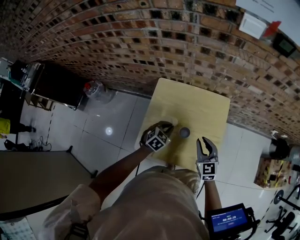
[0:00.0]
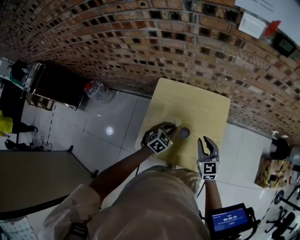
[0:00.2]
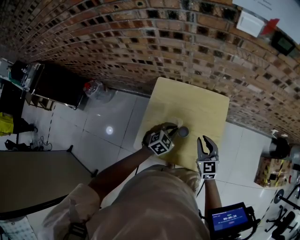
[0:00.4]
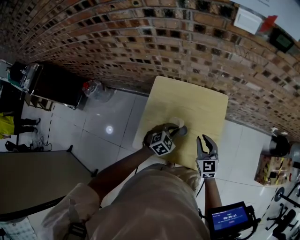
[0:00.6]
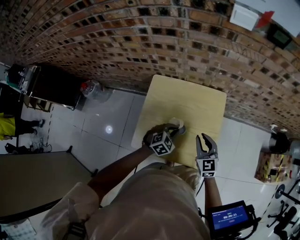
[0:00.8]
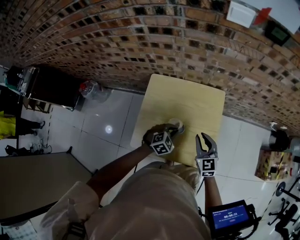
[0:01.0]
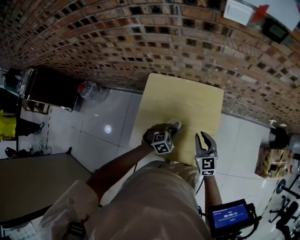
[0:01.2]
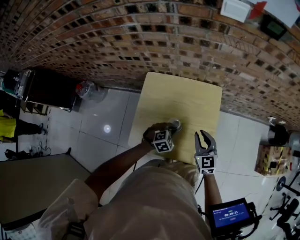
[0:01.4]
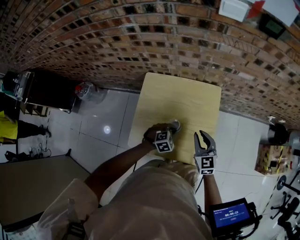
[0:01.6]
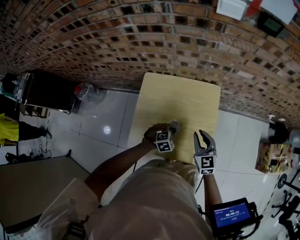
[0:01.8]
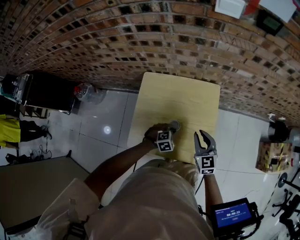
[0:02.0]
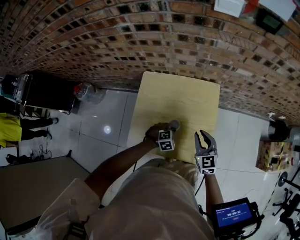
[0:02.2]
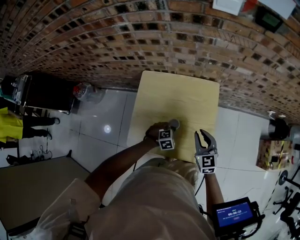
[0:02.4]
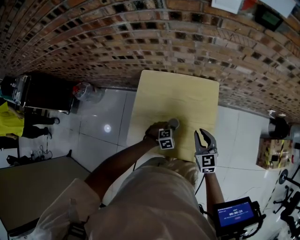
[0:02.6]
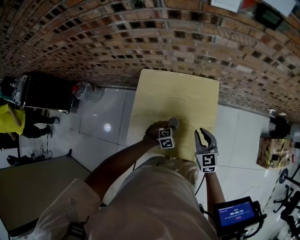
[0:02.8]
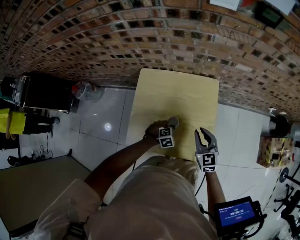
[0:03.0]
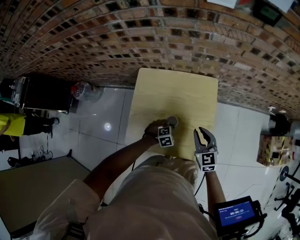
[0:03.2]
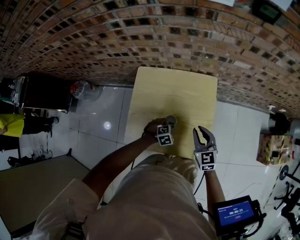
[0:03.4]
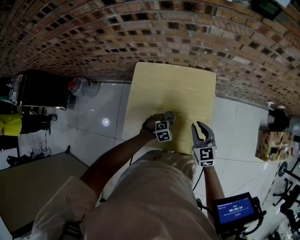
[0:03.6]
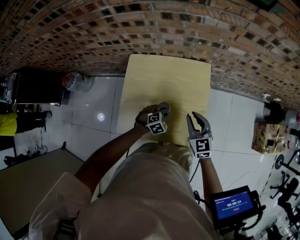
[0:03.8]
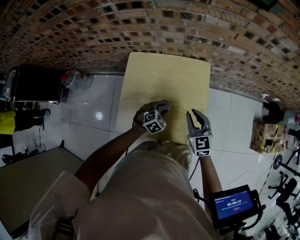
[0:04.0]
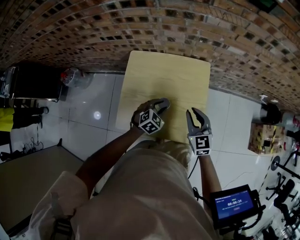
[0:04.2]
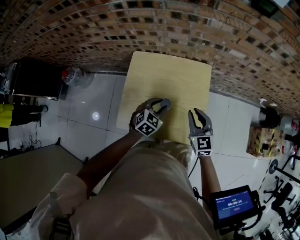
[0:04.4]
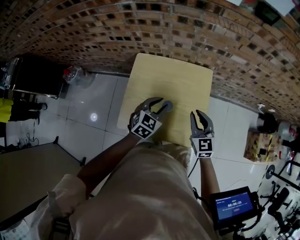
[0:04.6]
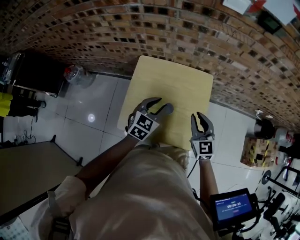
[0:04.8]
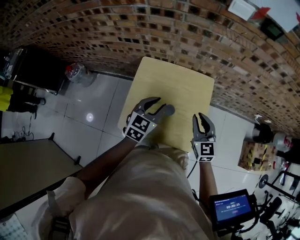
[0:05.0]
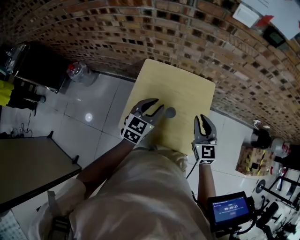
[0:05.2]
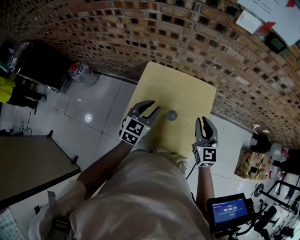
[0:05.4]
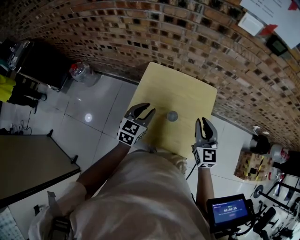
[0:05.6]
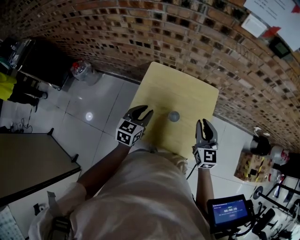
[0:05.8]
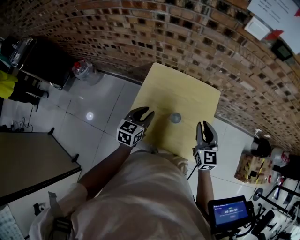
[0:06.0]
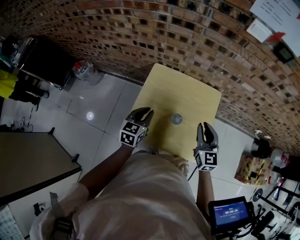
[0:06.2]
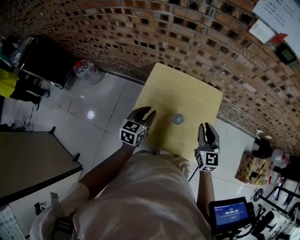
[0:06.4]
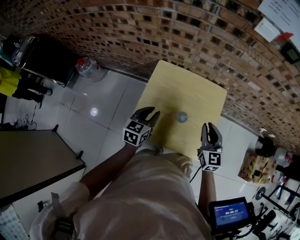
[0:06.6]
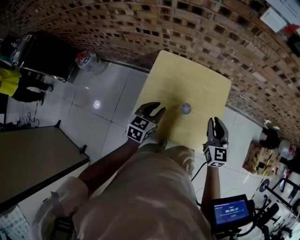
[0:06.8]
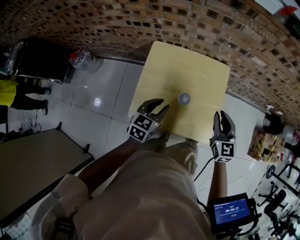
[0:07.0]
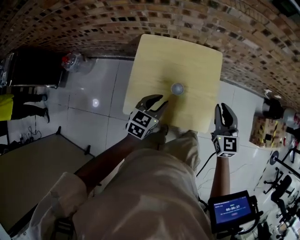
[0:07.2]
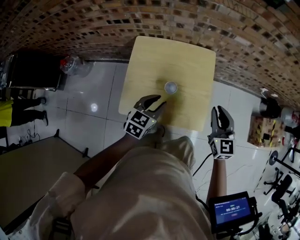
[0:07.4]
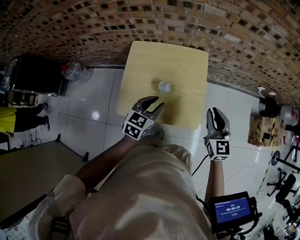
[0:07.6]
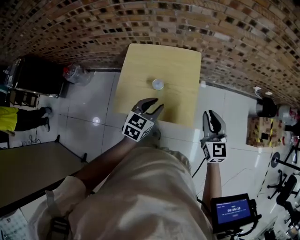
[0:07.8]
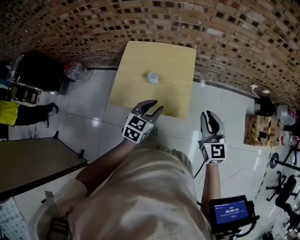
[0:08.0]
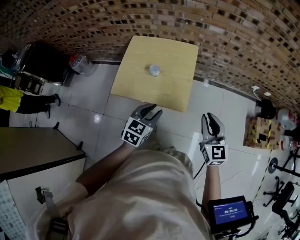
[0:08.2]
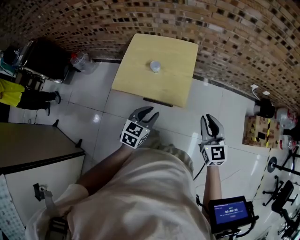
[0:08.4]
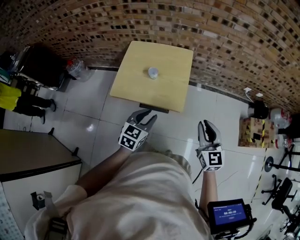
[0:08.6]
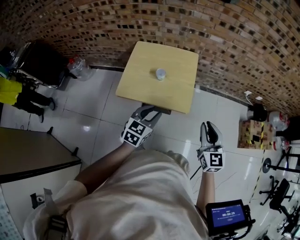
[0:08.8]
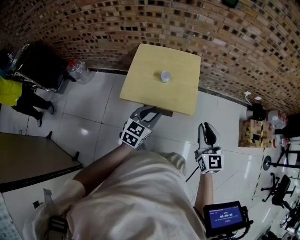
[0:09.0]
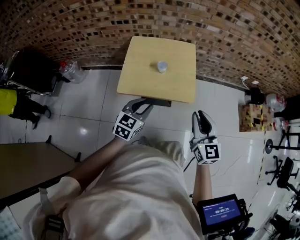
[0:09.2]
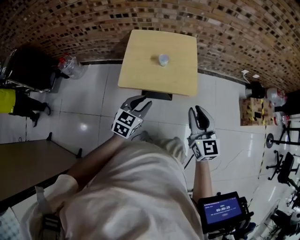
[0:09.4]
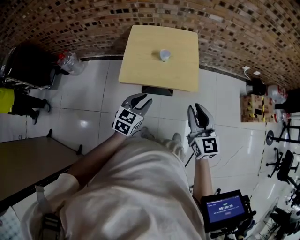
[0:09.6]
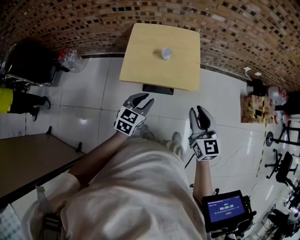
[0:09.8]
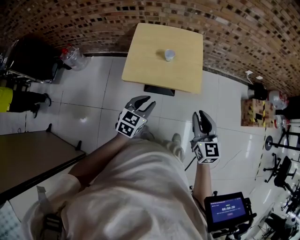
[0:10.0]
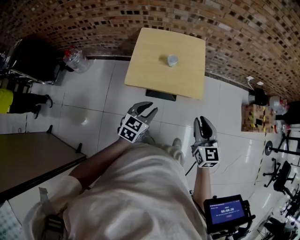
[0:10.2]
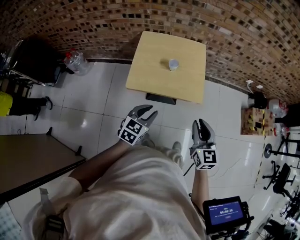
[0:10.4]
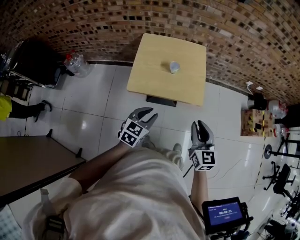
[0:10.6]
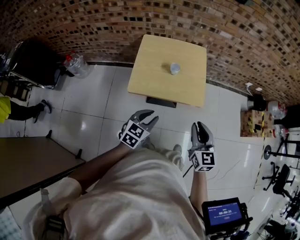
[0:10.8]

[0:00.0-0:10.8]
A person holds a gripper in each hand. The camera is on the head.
0:00.0 to 0:01.6: The left gripper heads to the right and downward, covering approximately 10 cm, and rotates about 30 degrees.
0:01.6 to 0:03.0: The left gripper goes some 5 cm downward.
0:03.0 to 0:04.6: The left gripper travels upward by roughly 20 cm, tilts its fingers some 30 degrees upward, and opens up. Meanwhile the right gripper travels upward by roughly 5 cm.
0:04.6 to 0:06.2: The right gripper shifts roughly 5 cm upward, while the left gripper shifts roughly 15 cm to the left, and rotates some 30 degrees.
0:06.2 to 0:07.8: The two grippers go approximately 25 cm to the right and backward. The left gripper changes its angle by roughly 20 degrees.
0:07.8 to 0:09.2: The right gripper goes approximately 20 cm backward, while the left gripper shifts about 20 cm backward and to the left.
0:09.2 to 0:10.8: The right gripper goes roughly 5 cm downward. Meanwhile the left gripper shifts by about 5 cm.

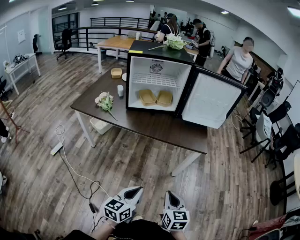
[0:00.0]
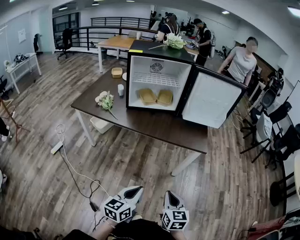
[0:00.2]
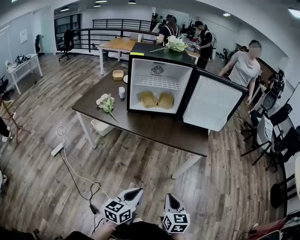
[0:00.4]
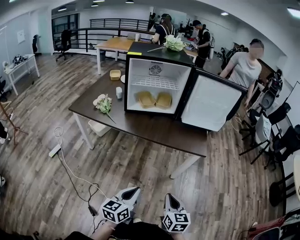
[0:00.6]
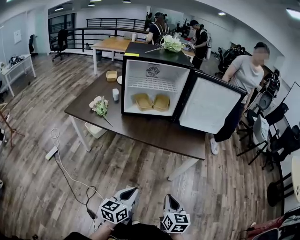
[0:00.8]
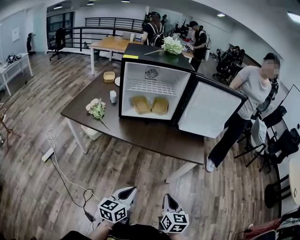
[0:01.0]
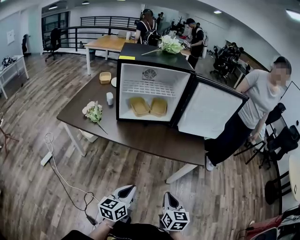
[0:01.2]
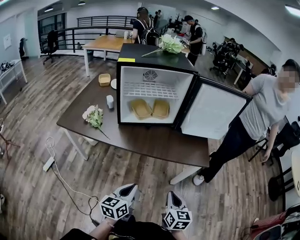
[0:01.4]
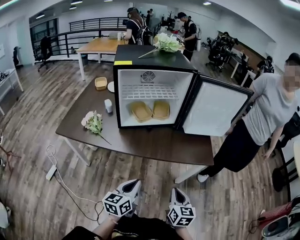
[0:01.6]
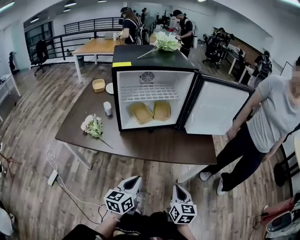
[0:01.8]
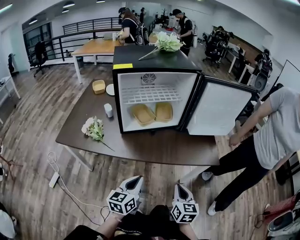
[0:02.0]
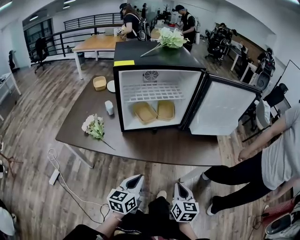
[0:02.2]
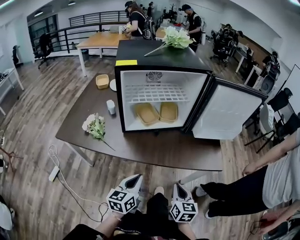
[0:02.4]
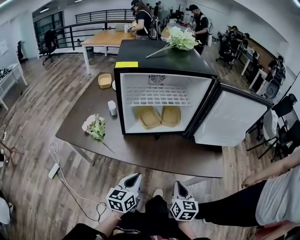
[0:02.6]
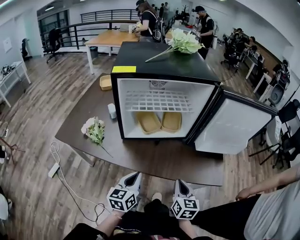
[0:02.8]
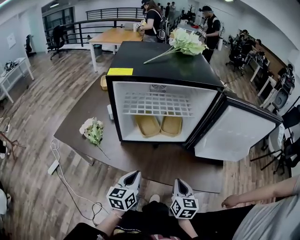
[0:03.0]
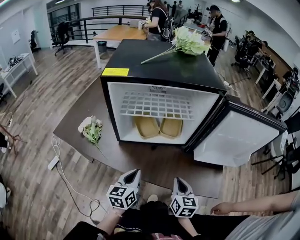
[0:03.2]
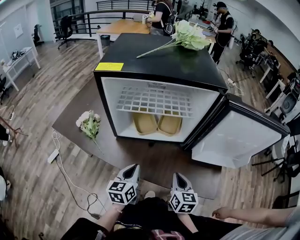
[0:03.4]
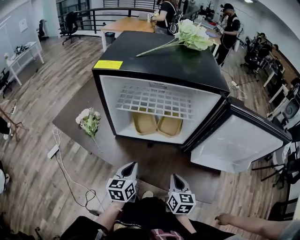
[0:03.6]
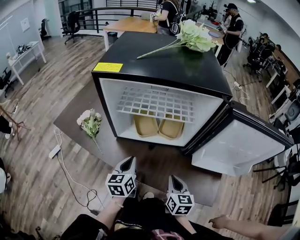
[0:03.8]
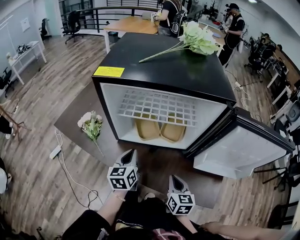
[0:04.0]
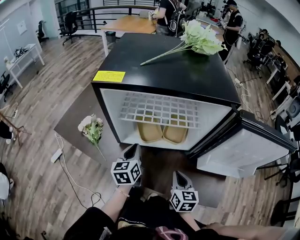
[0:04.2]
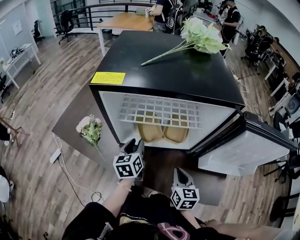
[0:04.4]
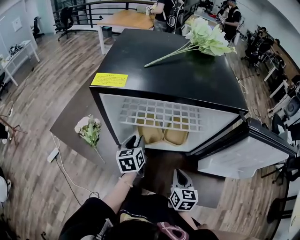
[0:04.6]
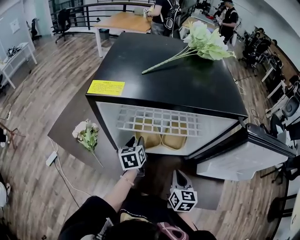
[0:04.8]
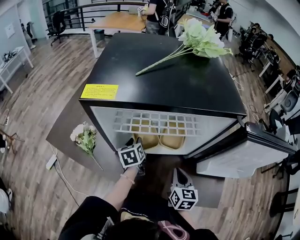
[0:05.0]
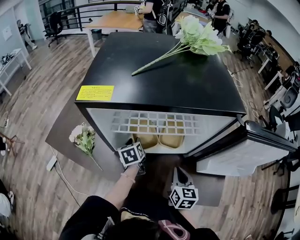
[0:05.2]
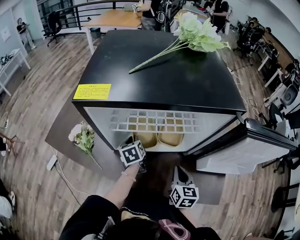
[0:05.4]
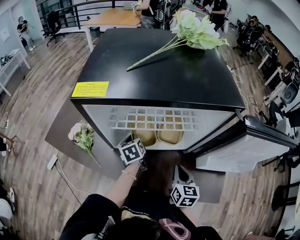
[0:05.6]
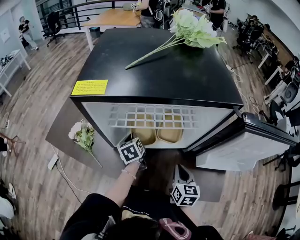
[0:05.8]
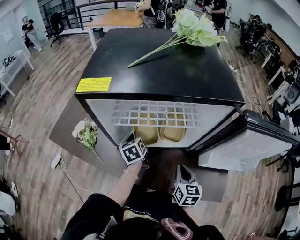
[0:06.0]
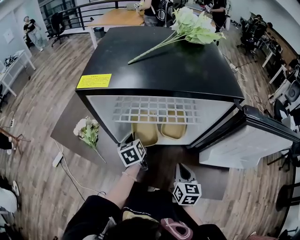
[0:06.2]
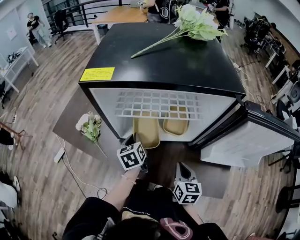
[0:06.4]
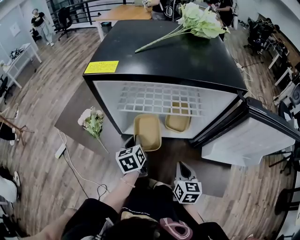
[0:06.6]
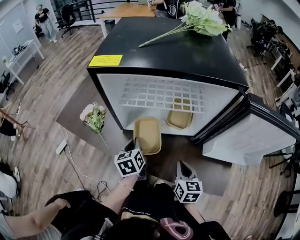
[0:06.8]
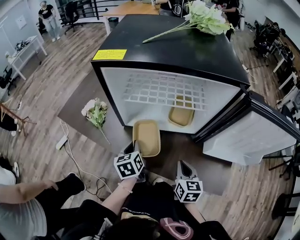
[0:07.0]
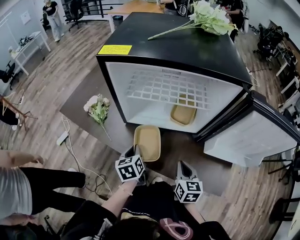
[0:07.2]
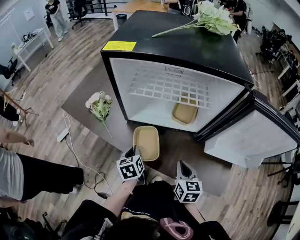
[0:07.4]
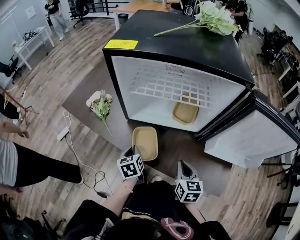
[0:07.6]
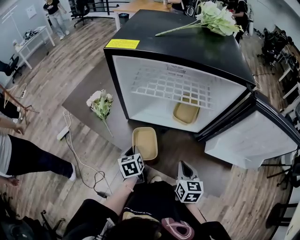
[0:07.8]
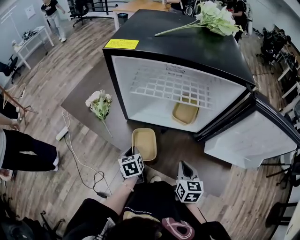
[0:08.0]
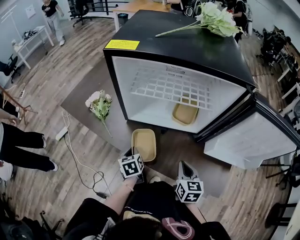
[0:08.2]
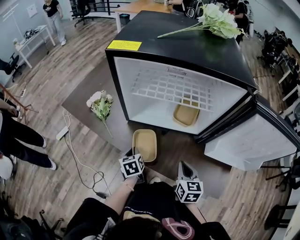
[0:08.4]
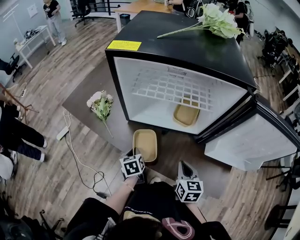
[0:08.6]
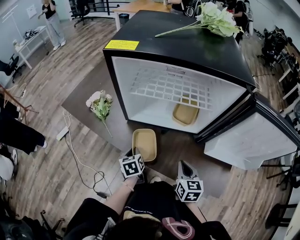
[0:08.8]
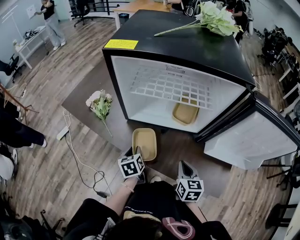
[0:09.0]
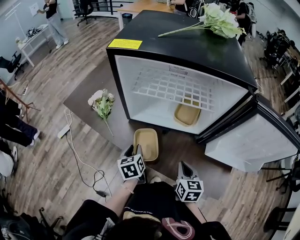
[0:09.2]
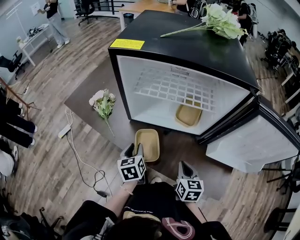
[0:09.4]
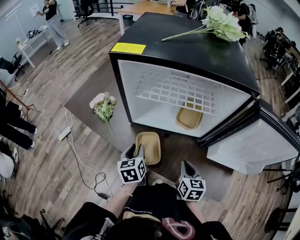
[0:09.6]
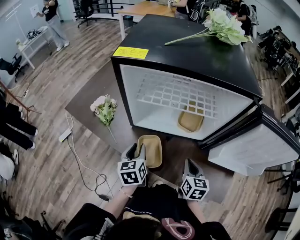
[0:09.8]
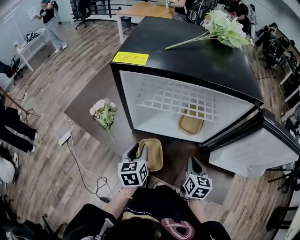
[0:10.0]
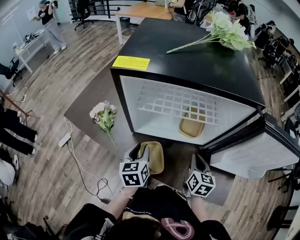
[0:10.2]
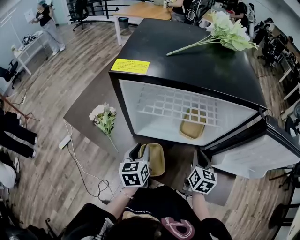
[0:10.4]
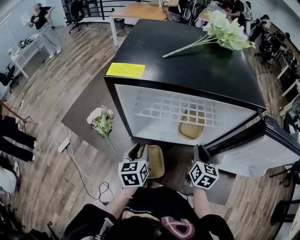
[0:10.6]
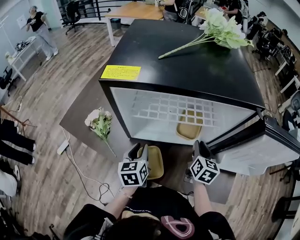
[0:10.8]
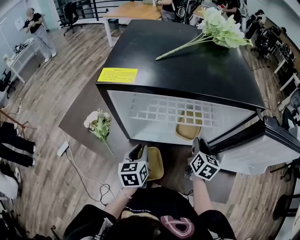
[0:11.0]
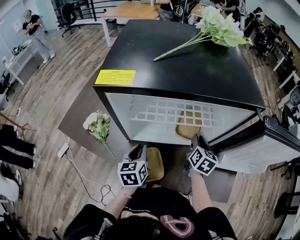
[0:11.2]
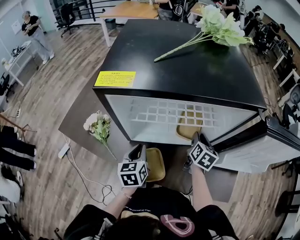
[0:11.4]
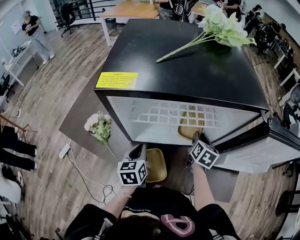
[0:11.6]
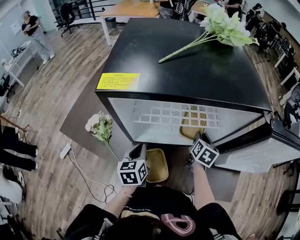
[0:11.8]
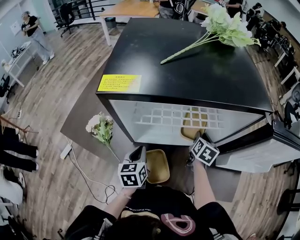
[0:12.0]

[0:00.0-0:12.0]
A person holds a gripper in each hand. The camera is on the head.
0:00.0 to 0:01.6: The left gripper moves forward and to the left, approximately 25 cm. The right gripper heads forward, covering approximately 15 cm.
0:01.6 to 0:03.0: The grippers both shift forward by roughly 20 cm.
0:03.0 to 0:04.4: The left gripper travels forward by roughly 20 cm, and opens its fingers; the right gripper moves forward, approximately 15 cm.
0:04.4 to 0:06.0: The left gripper is displaced forward and downward by approximately 10 cm, and closes its fingers.
0:06.0 to 0:07.6: The left gripper heads backward, covering about 20 cm, while the right gripper shifts about 5 cm backward.
0:07.6 to 0:09.0: There are only small adjustments of the grippers.
0:09.0 to 0:10.4: The left gripper moves upward and forward, some 15 cm; the right gripper travels forward and upward by some 10 cm.
0:10.4 to 0:12.0: The left gripper closes; the right gripper shifts some 10 cm forward, and changes its angle by approximately 20 degrees.

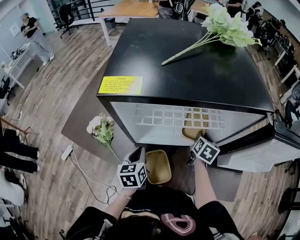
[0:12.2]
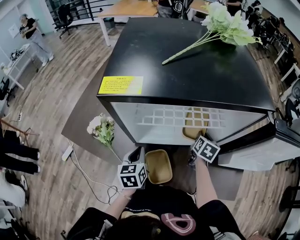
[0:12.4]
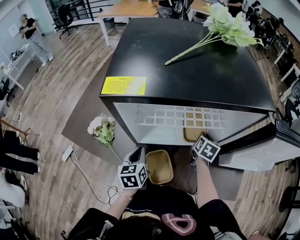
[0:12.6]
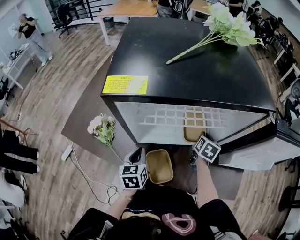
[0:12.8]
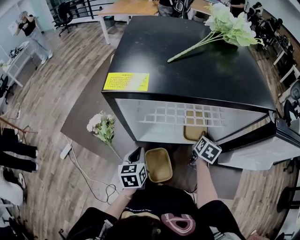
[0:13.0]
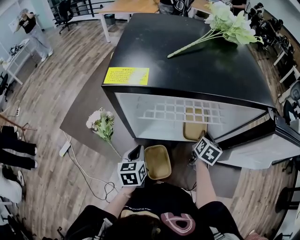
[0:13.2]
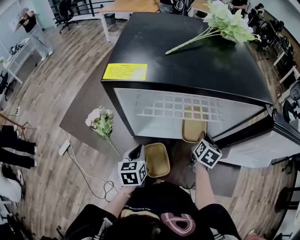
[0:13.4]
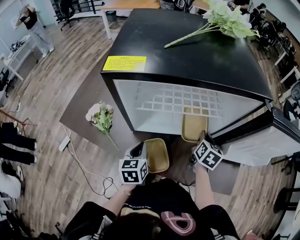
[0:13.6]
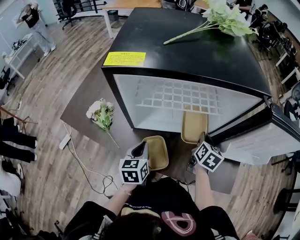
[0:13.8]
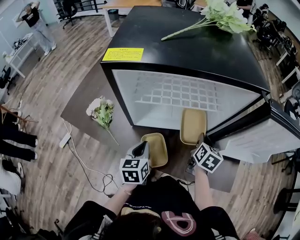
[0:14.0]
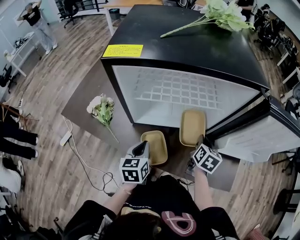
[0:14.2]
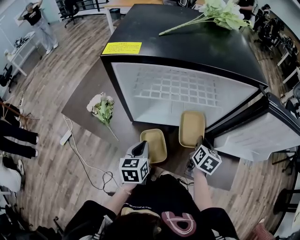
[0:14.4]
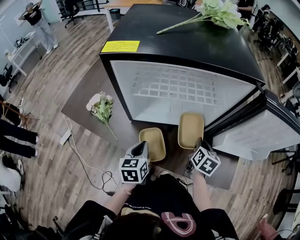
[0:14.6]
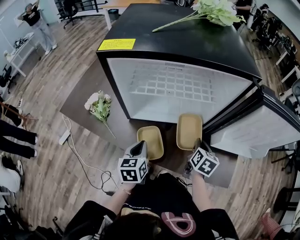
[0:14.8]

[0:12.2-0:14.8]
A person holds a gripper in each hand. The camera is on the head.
0:12.2 to 0:13.4: The grippers move only a little.
0:13.4 to 0:14.8: The left gripper travels to the right and backward by about 10 cm, while the right gripper shifts roughly 10 cm backward.
